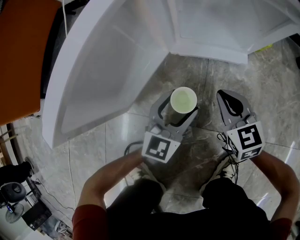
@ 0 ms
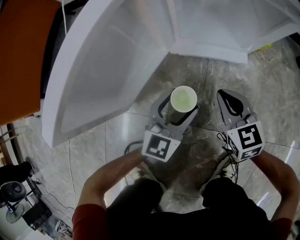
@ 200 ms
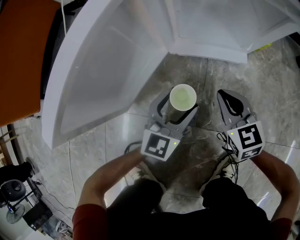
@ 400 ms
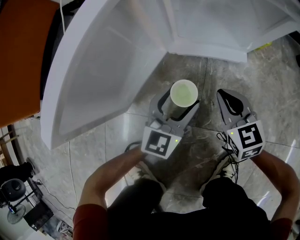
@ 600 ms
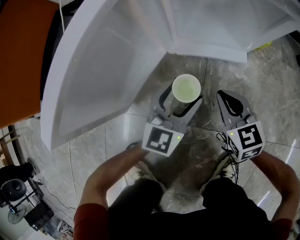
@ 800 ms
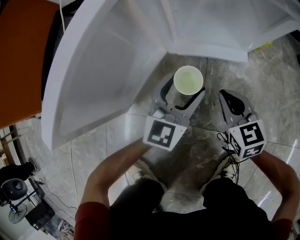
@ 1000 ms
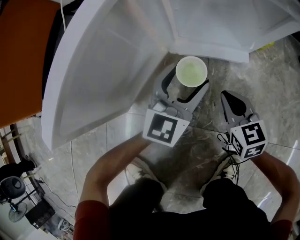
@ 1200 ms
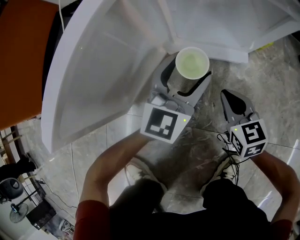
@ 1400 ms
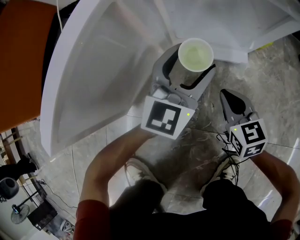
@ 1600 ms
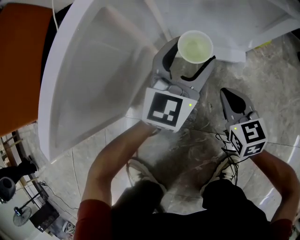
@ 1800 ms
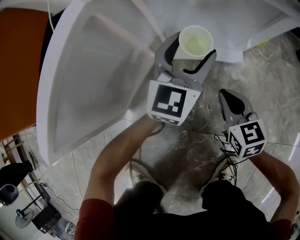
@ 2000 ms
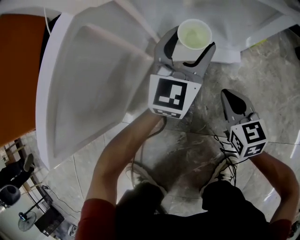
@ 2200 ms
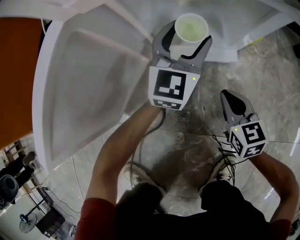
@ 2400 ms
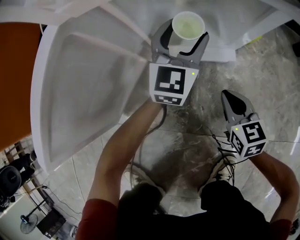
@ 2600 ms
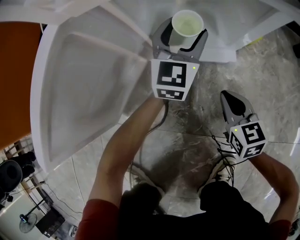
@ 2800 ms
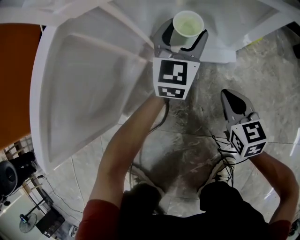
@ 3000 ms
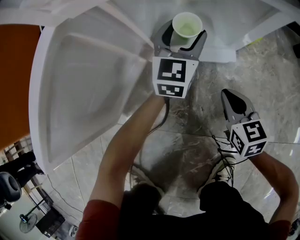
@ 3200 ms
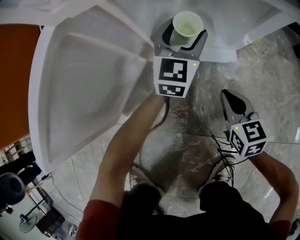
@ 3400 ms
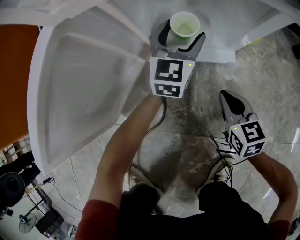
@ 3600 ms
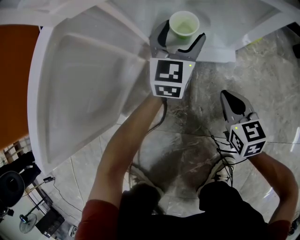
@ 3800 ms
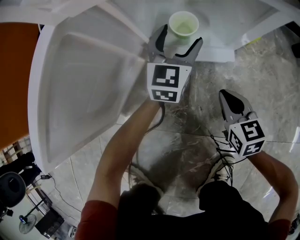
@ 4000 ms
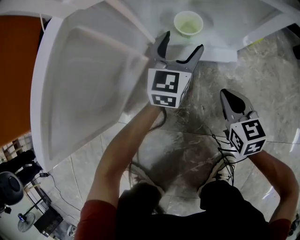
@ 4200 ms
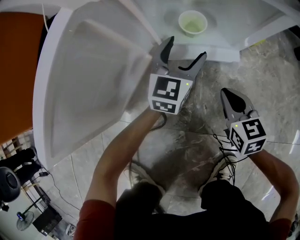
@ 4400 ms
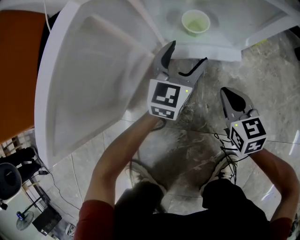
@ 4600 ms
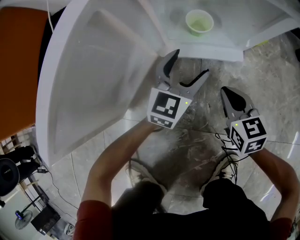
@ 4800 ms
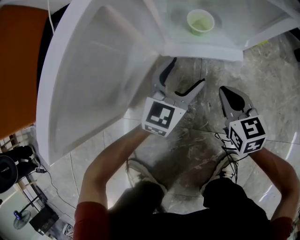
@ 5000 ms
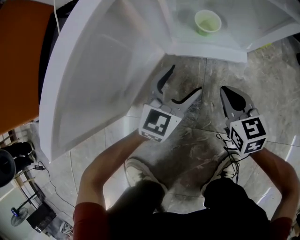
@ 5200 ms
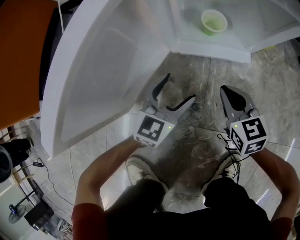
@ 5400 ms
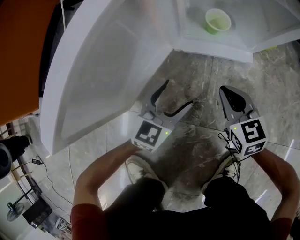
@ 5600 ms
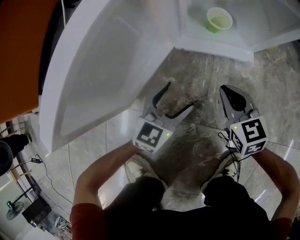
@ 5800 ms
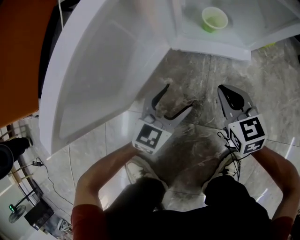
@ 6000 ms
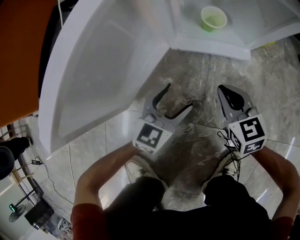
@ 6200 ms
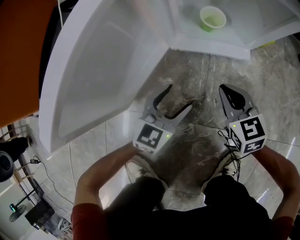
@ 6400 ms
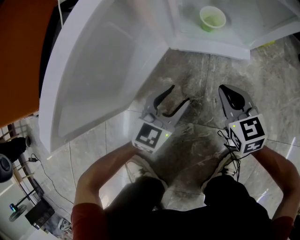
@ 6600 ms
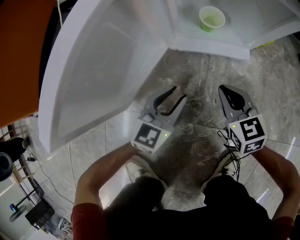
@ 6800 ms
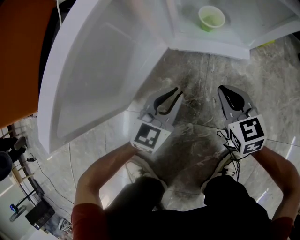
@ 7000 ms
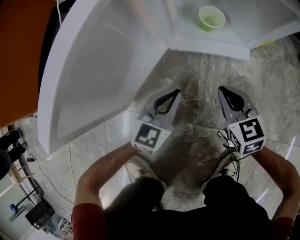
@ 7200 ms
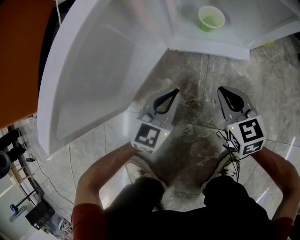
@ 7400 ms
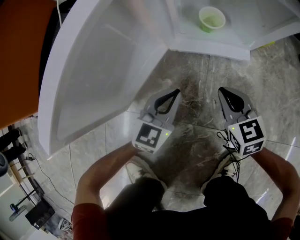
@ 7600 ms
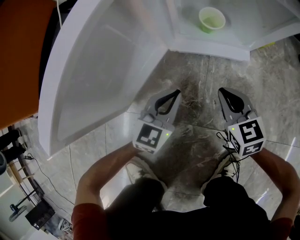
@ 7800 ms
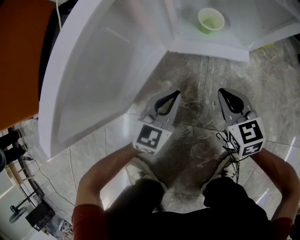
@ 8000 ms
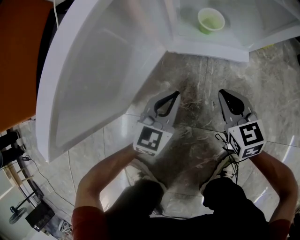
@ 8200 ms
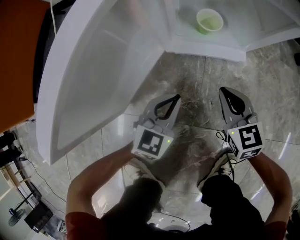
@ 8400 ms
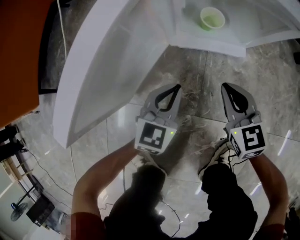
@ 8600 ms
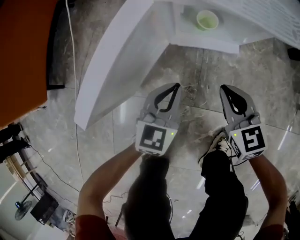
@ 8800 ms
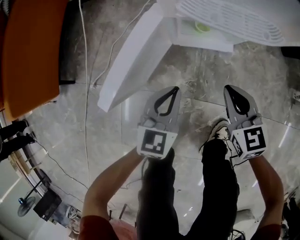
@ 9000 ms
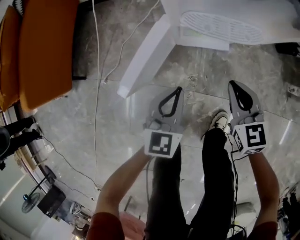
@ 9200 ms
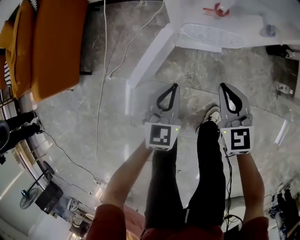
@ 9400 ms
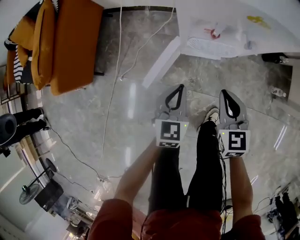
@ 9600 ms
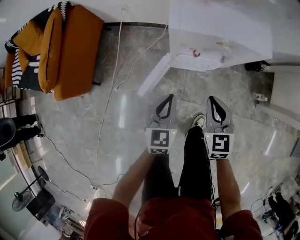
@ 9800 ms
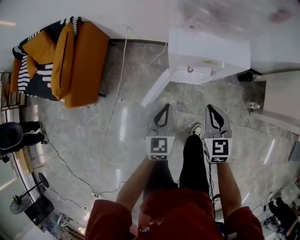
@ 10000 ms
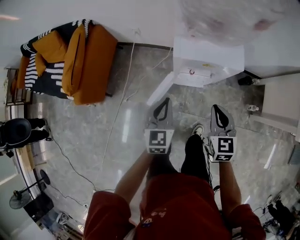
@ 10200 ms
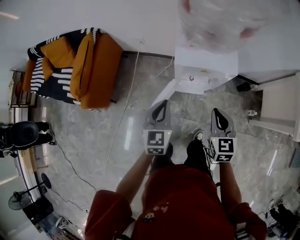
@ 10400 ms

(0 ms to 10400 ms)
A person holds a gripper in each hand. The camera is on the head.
0 ms - 1400 ms: The left gripper goes roughly 10 cm forward and upward.
1400 ms - 3000 ms: The left gripper shifts roughly 15 cm forward and to the right. Meanwhile the right gripper heads to the right, covering about 5 cm.
3000 ms - 4400 ms: The left gripper is displaced backward by about 5 cm.
4400 ms - 6000 ms: The right gripper moves to the left, approximately 5 cm, while the left gripper heads backward and to the left, covering roughly 20 cm.
6000 ms - 7400 ms: The left gripper closes.
7400 ms - 9000 ms: The grippers both shift upward by roughly 25 cm.
9000 ms - 10400 ms: The two grippers go about 60 cm upward.

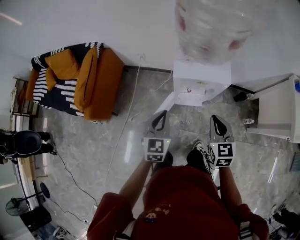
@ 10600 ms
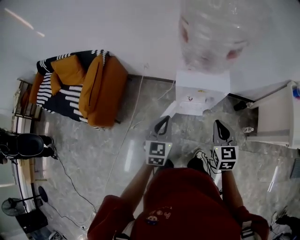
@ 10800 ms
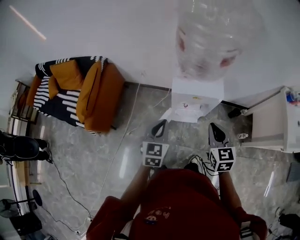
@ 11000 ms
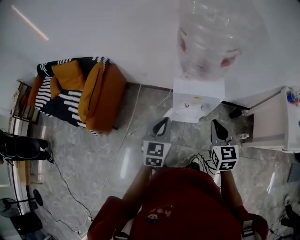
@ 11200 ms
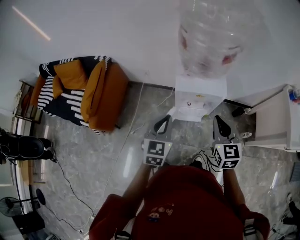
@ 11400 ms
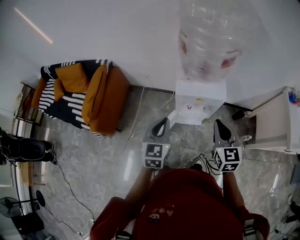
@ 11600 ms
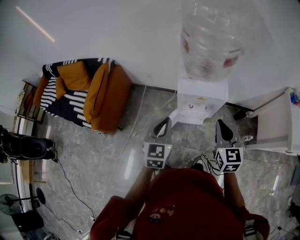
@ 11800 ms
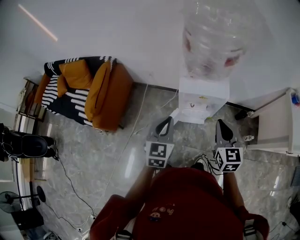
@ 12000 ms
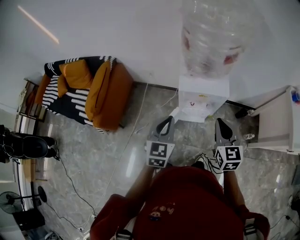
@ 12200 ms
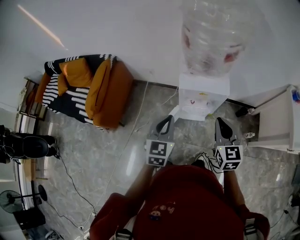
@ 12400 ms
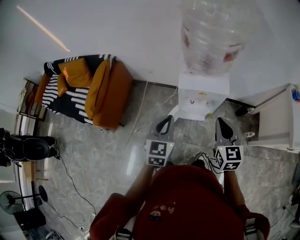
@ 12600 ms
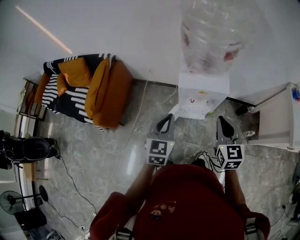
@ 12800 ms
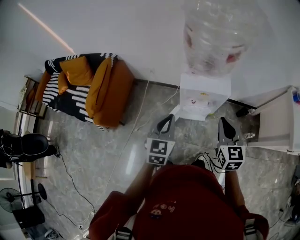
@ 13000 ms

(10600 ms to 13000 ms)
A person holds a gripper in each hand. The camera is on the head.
10600 ms - 11800 ms: Both grippers travel together upward, about 10 cm.
11800 ms - 13000 ms: The grippers move only a little.

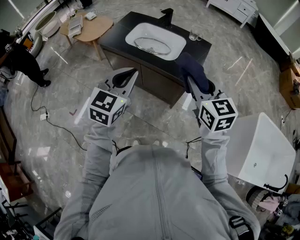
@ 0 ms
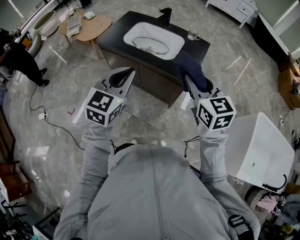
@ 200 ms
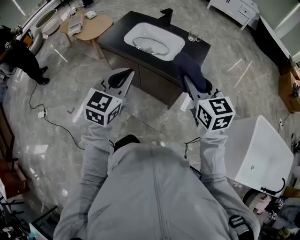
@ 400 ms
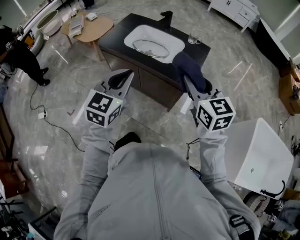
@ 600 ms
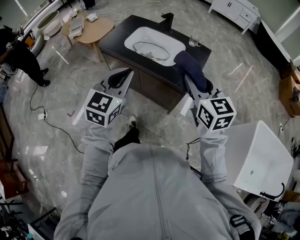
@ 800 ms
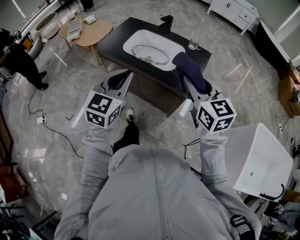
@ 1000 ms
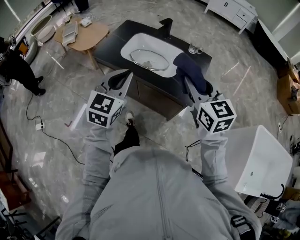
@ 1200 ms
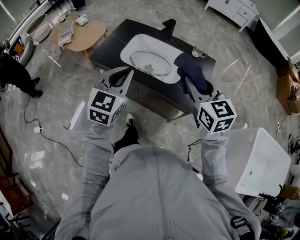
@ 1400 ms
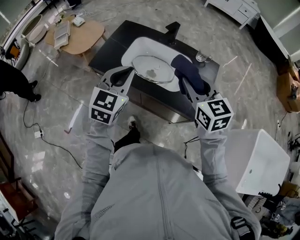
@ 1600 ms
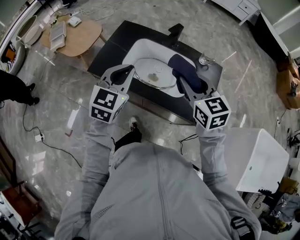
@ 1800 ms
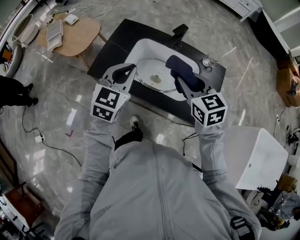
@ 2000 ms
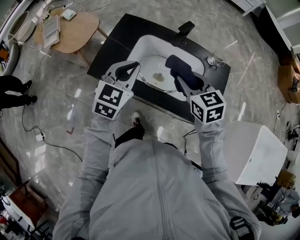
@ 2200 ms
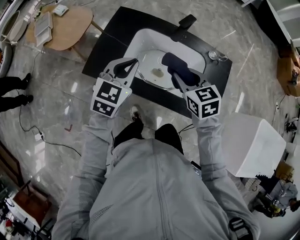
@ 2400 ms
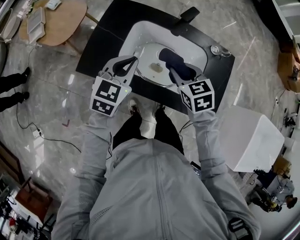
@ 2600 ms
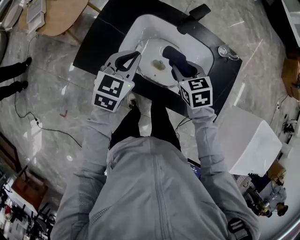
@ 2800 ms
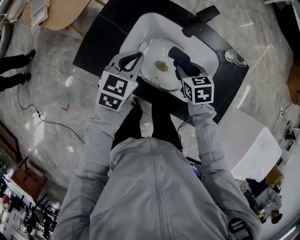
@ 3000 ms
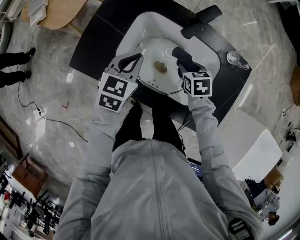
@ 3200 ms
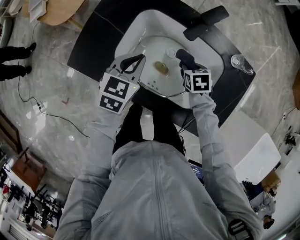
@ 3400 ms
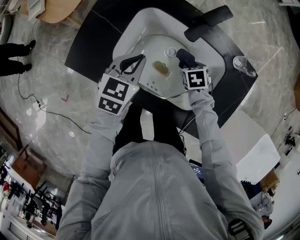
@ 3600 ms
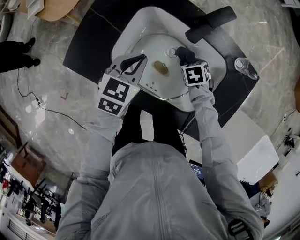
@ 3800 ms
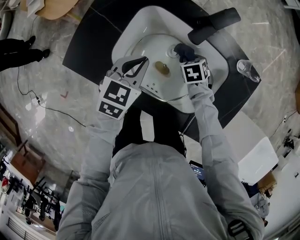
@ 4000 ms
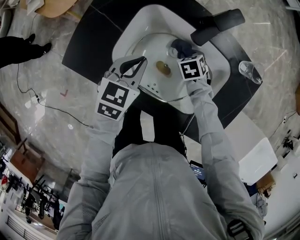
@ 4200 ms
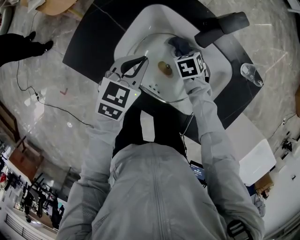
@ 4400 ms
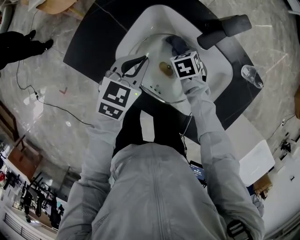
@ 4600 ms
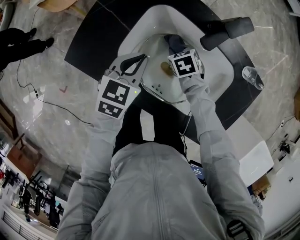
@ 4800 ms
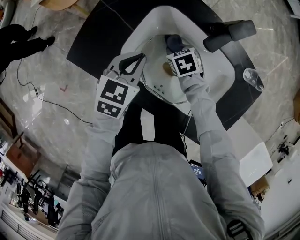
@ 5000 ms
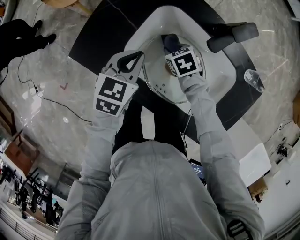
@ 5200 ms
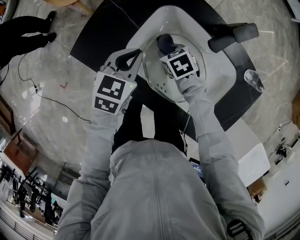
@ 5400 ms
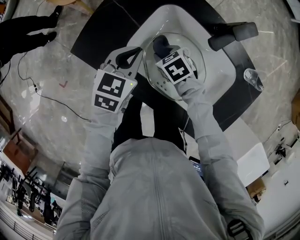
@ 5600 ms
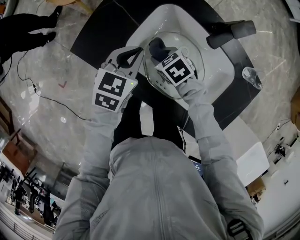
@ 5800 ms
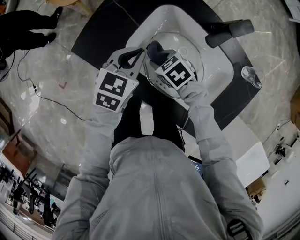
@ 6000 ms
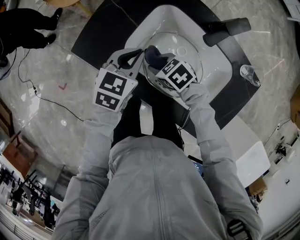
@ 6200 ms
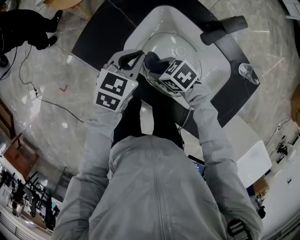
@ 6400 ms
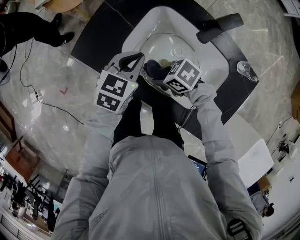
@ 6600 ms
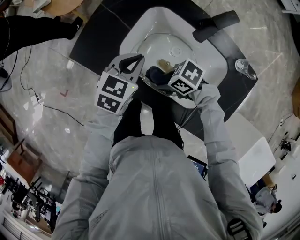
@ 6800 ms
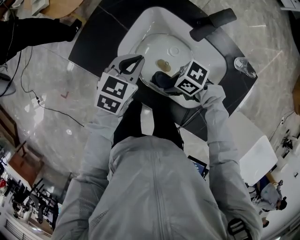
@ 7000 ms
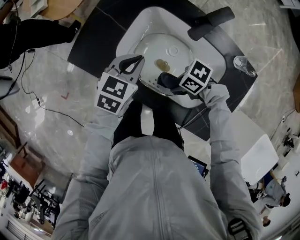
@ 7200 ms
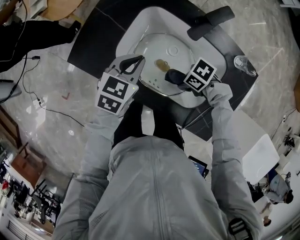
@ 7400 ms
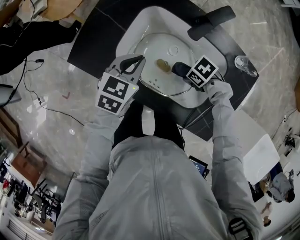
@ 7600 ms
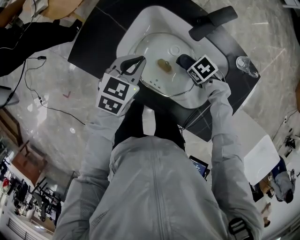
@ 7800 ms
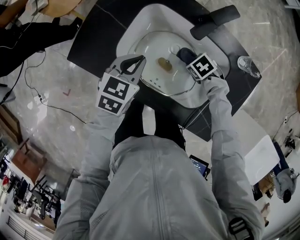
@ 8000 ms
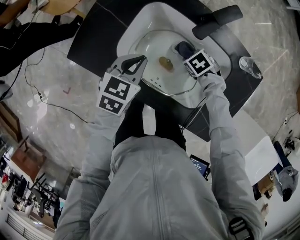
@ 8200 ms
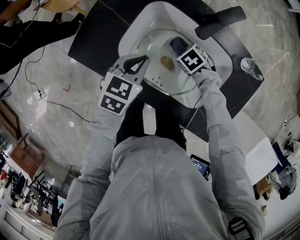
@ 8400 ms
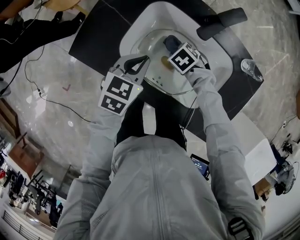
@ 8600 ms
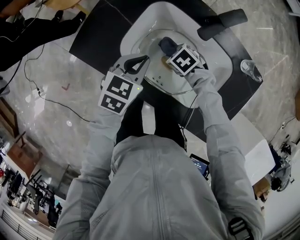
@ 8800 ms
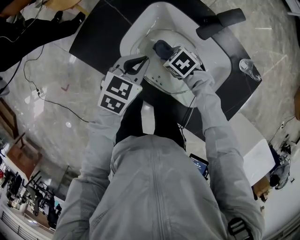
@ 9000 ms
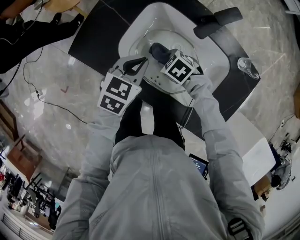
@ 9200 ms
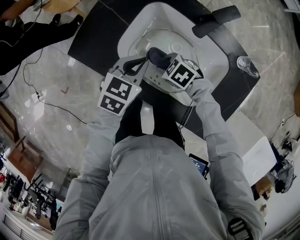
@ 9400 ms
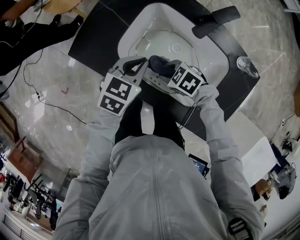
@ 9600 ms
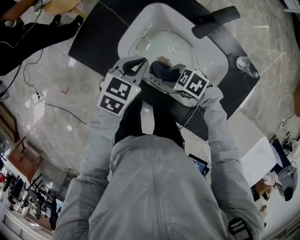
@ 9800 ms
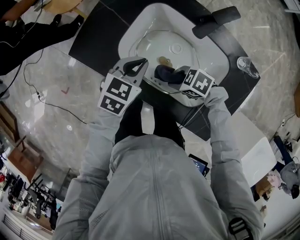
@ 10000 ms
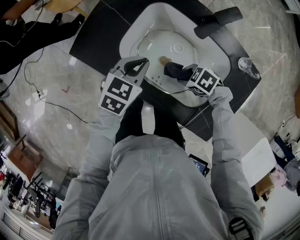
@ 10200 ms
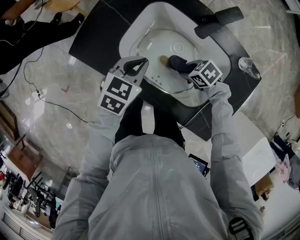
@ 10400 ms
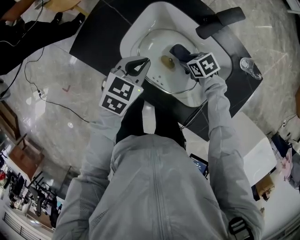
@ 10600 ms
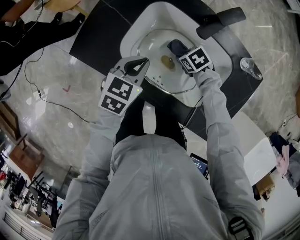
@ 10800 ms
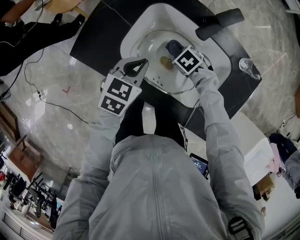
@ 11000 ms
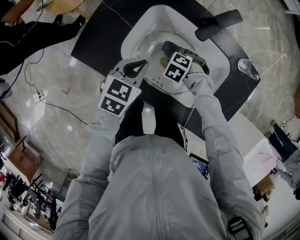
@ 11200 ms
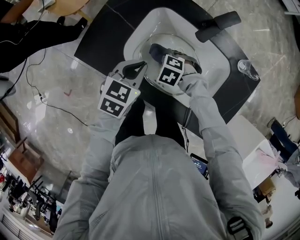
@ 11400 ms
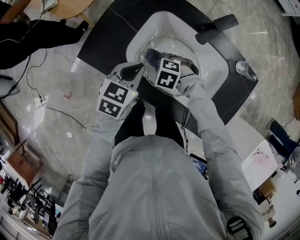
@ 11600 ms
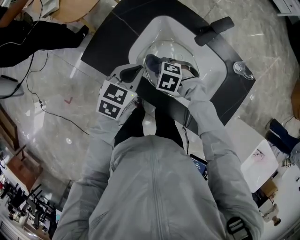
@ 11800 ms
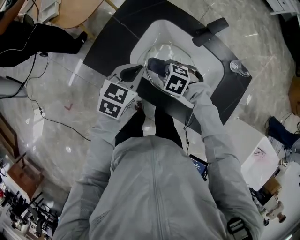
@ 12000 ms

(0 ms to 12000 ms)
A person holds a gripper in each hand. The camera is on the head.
0 ms - 1600 ms: Both grippers move forward, roughly 25 cm.
1600 ms - 3000 ms: The left gripper heads forward and downward, covering some 25 cm, and swivels some 20 degrees. Meanwhile the right gripper goes some 35 cm downward and forward, and tips its fingers downward by approximately 30 degrees.
3000 ms - 4400 ms: The left gripper shifts some 5 cm downward. Meanwhile the right gripper is displaced downward by approximately 15 cm, and swivels roughly 20 degrees.
4400 ms - 6000 ms: The right gripper ends up roughly 20 cm from where it was, and turns by about 30 degrees. The left gripper moves roughly 5 cm.
6000 ms - 7600 ms: The right gripper shifts by approximately 20 cm, and rotates about 30 degrees.
7600 ms - 9000 ms: The right gripper ends up approximately 15 cm from where it was, and rotates roughly 20 degrees.
9000 ms - 10400 ms: The right gripper shifts by roughly 10 cm.
10400 ms - 12000 ms: The left gripper shifts about 5 cm upward. Meanwhile the right gripper changes place by about 15 cm, and turns by some 30 degrees.
